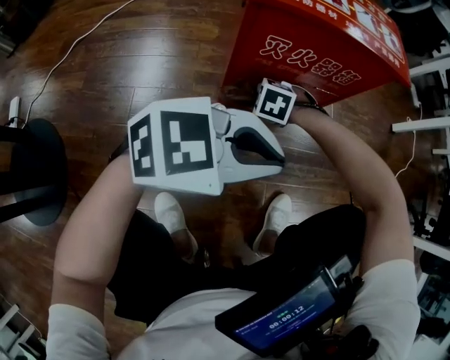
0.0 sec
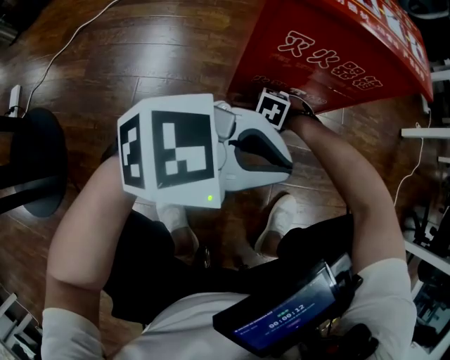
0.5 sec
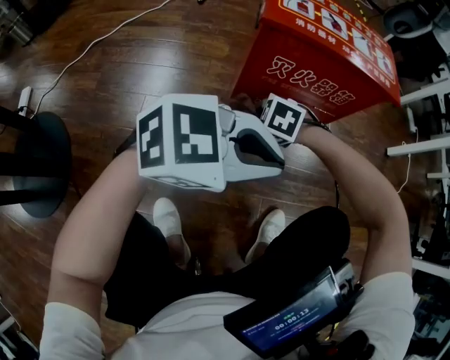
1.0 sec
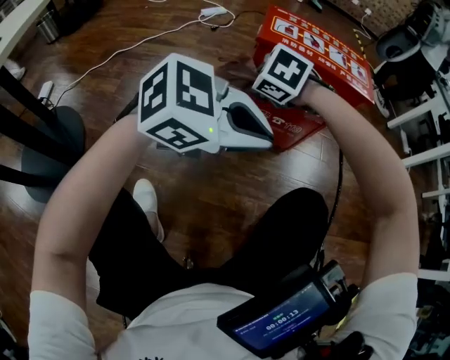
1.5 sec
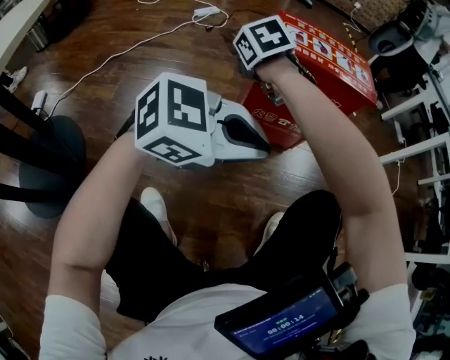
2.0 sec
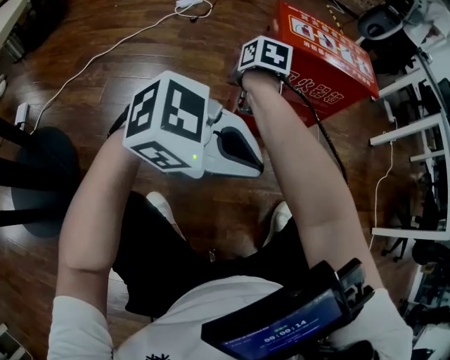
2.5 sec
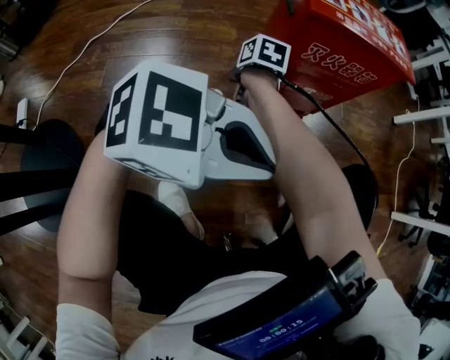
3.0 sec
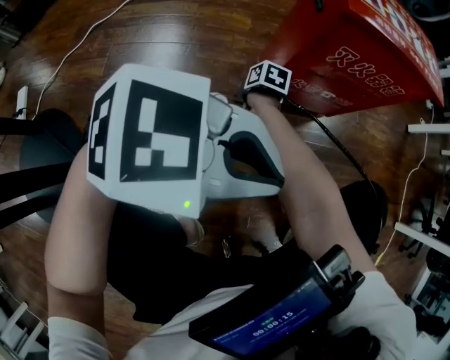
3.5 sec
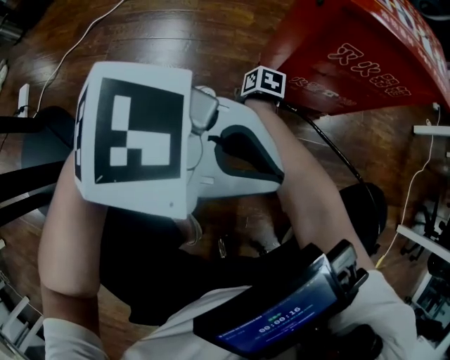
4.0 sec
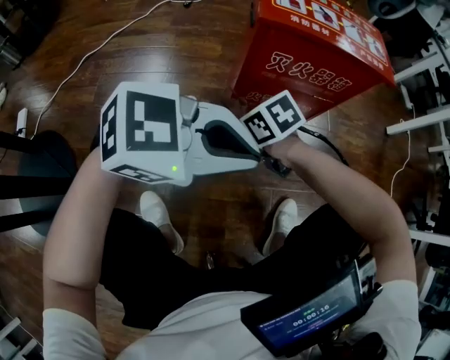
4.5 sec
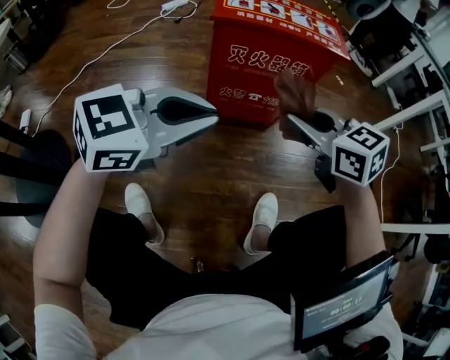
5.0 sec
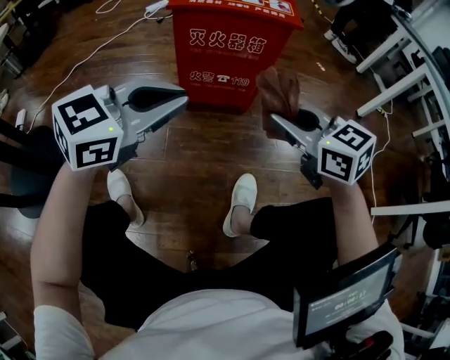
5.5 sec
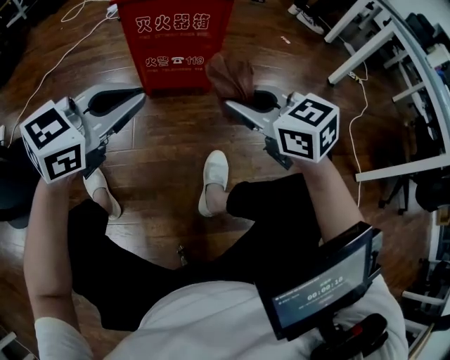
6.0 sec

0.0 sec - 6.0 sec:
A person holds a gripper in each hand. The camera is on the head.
0.0 sec - 2.0 sec: The left gripper changes place by approximately 10 cm; the right gripper moves upward, approximately 25 cm, and changes its angle by roughly 50 degrees.
2.0 sec - 4.0 sec: The right gripper goes roughly 40 cm downward, and rolls clockwise, seen from behind, by about 60 degrees. Meanwhile the left gripper changes place by approximately 10 cm.
4.0 sec - 6.0 sec: The left gripper changes place by about 20 cm, and rotates about 40 degrees. Meanwhile the right gripper shifts by approximately 60 cm, and rolls counterclockwise, seen from behind, by some 60 degrees.

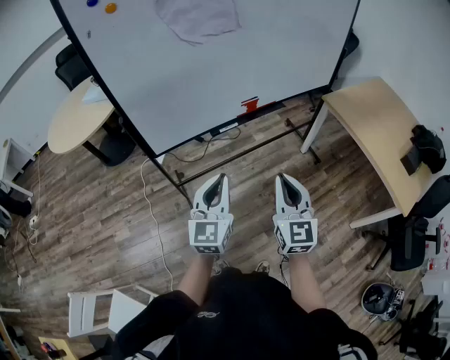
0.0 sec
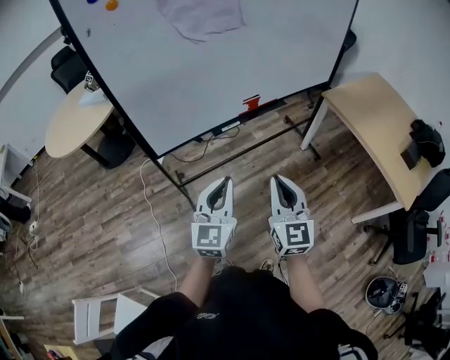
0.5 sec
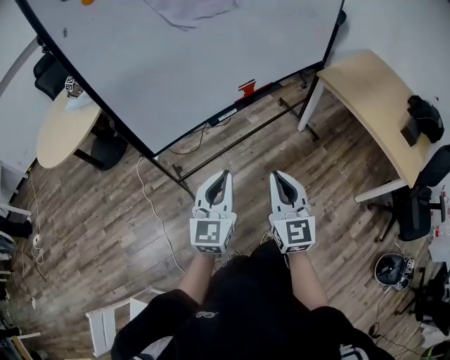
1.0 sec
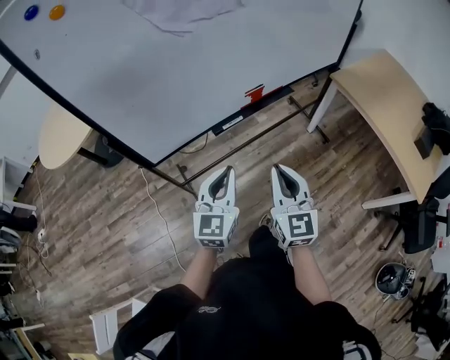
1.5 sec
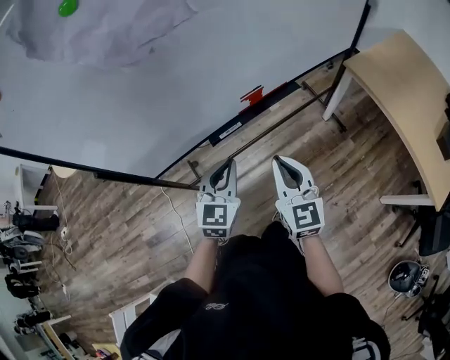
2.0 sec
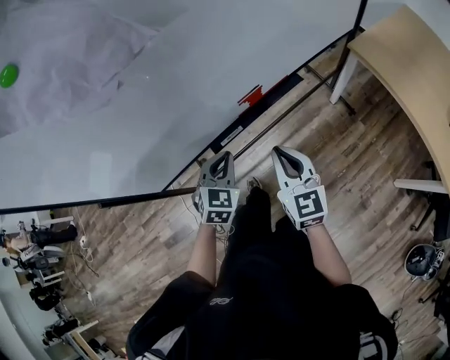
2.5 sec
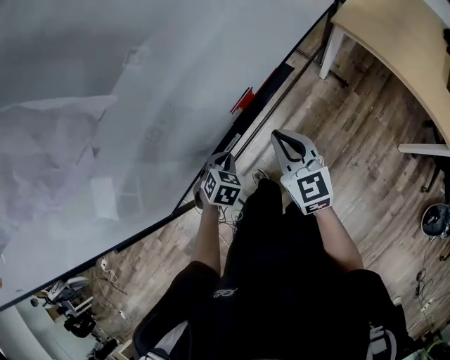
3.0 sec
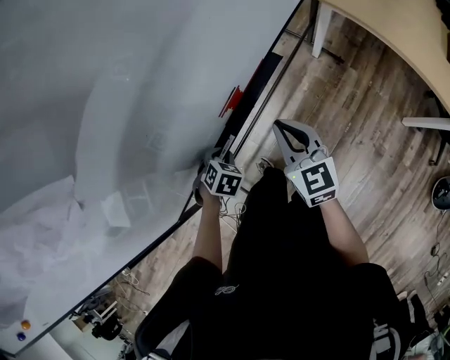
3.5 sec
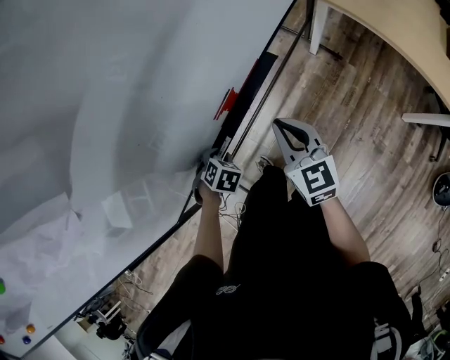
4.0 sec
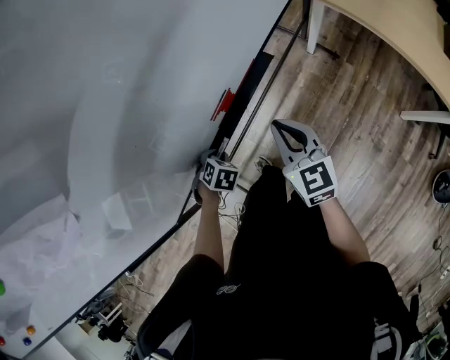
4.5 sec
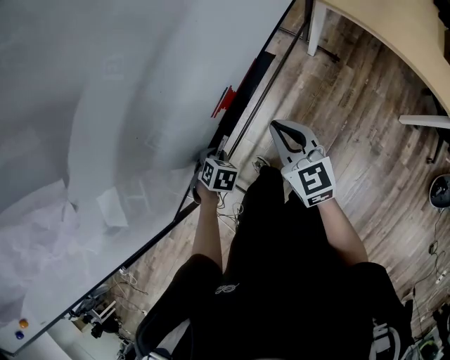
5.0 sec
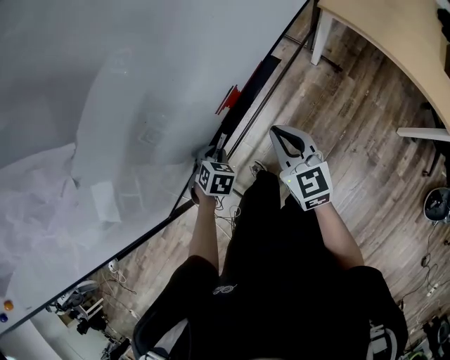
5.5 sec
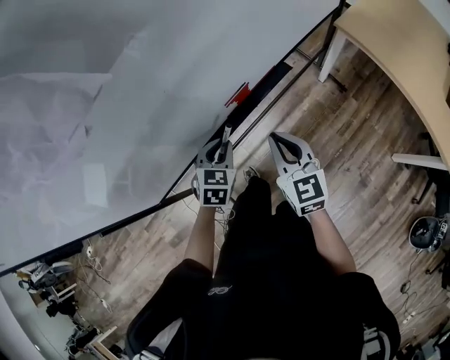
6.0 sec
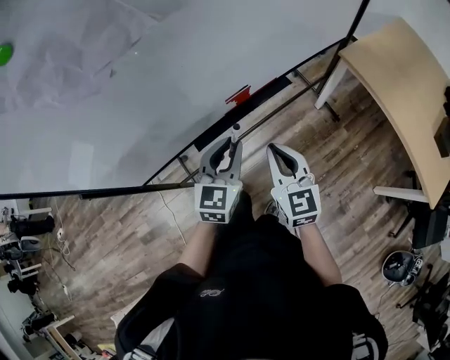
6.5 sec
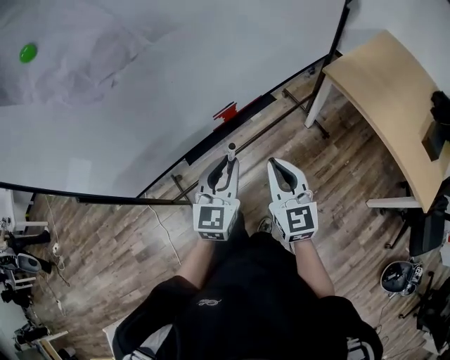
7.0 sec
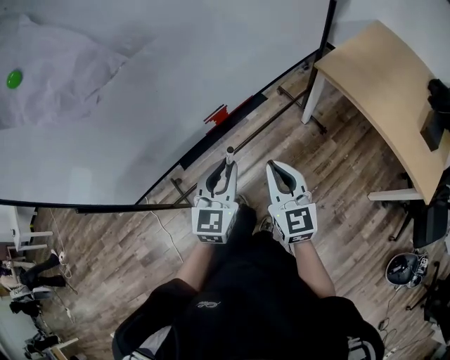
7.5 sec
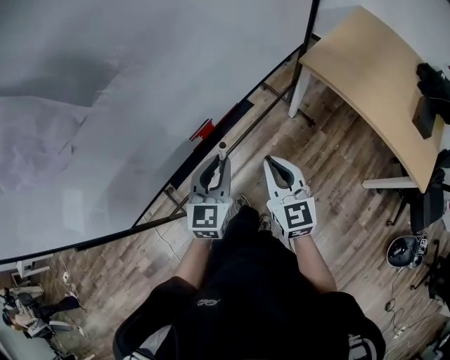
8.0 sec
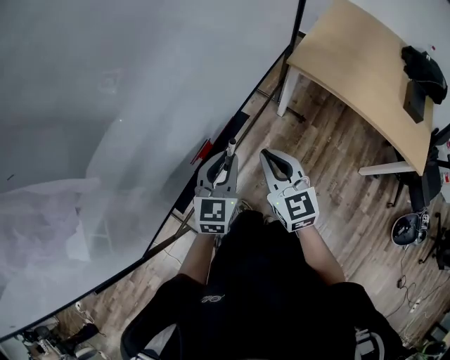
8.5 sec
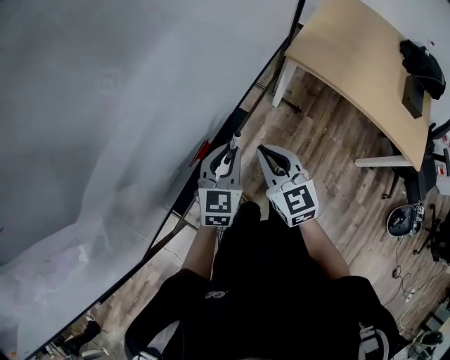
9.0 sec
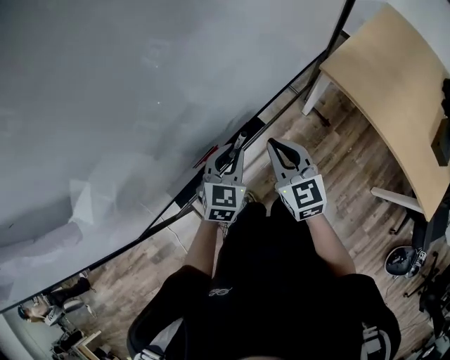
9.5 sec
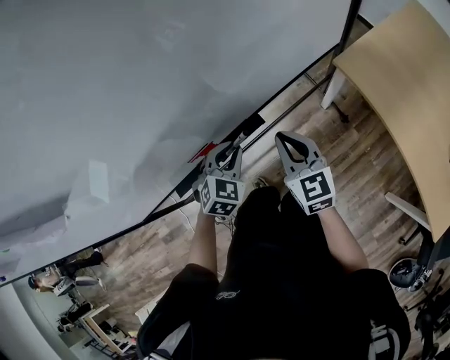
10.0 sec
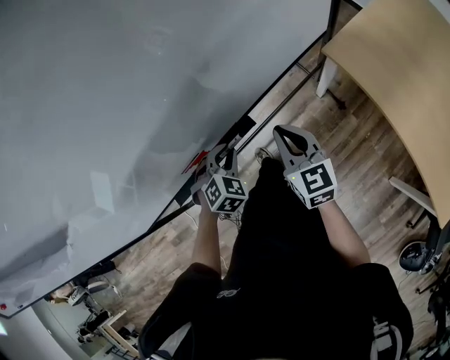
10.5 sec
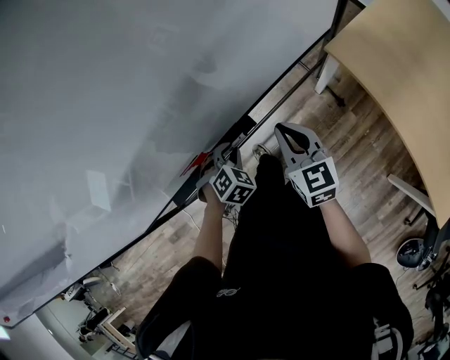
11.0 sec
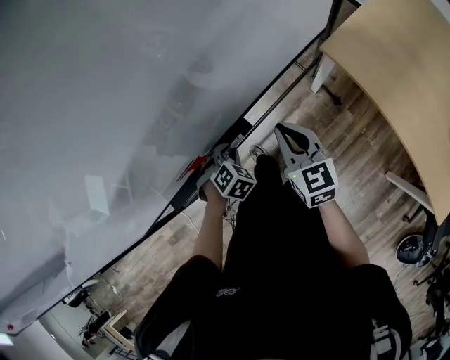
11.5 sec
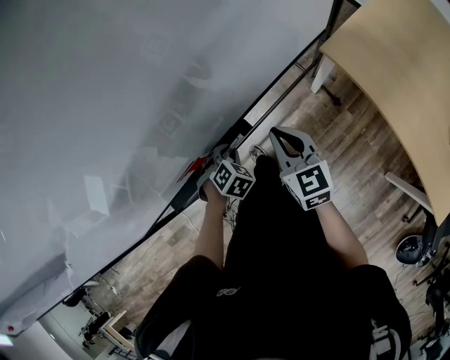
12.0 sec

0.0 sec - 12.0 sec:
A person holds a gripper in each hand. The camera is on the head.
0.0 sec - 2.0 sec: The grippers both shift forward and downward by some 25 cm. The left gripper turns by about 20 degrees.
2.0 sec - 4.0 sec: The left gripper travels downward by roughly 25 cm, points its fingers some 60 degrees further downward, and opens its fingers, while the right gripper ends up about 20 cm from where it was.
4.0 sec - 6.0 sec: The right gripper moves some 5 cm. The left gripper shifts about 10 cm upward, and tips its fingers upward by about 30 degrees.
6.0 sec - 8.0 sec: The right gripper heads to the right, covering about 10 cm. The left gripper is displaced to the right and upward by about 20 cm, and swivels about 30 degrees.
8.0 sec - 10.0 sec: The right gripper goes approximately 20 cm forward; the left gripper travels forward and downward by approximately 20 cm, and tips its fingers downward by some 30 degrees.
10.0 sec - 12.0 sec: The right gripper shifts by approximately 5 cm. The left gripper is displaced downward by roughly 15 cm, and swivels about 30 degrees.

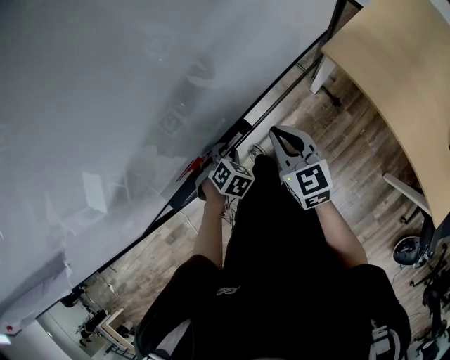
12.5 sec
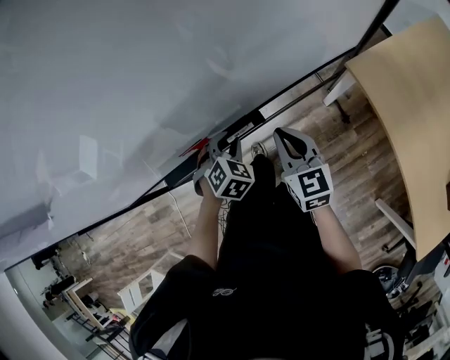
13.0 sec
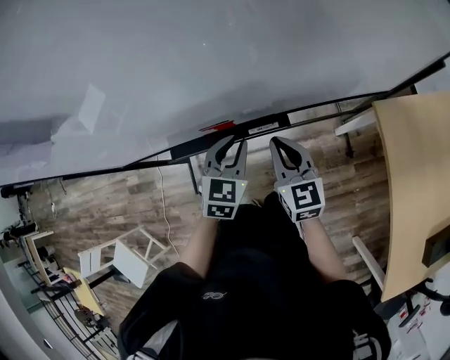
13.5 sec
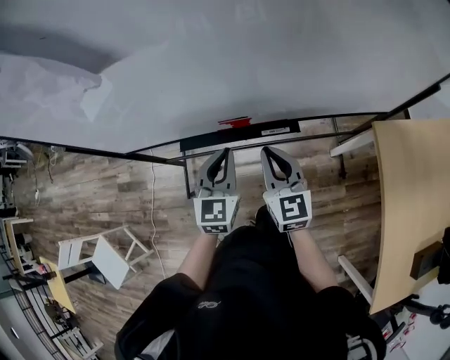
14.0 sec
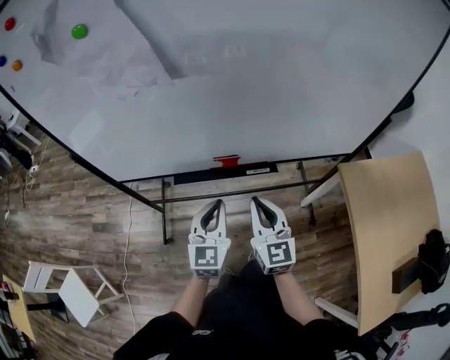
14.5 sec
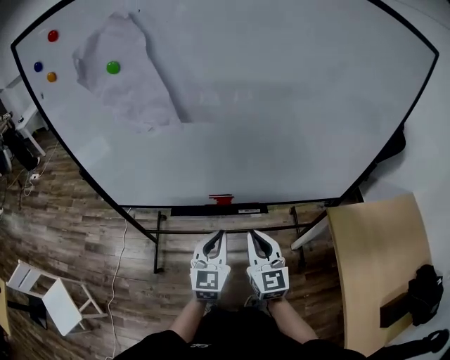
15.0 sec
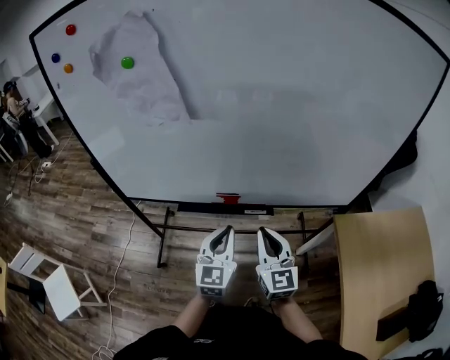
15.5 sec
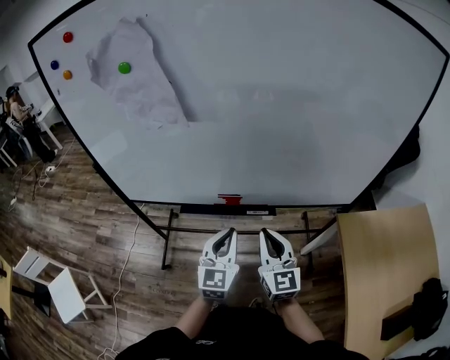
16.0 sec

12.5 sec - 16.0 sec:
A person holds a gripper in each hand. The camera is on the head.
12.5 sec - 14.5 sec: The left gripper heads upward, backward and to the left, covering approximately 35 cm, and angles its fingers upward, by roughly 60 degrees; the right gripper goes approximately 30 cm to the left, backward and upward, and swivels approximately 30 degrees.
14.5 sec - 16.0 sec: The two grippers go roughly 5 cm to the right.

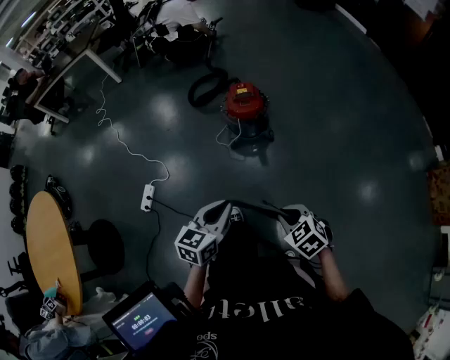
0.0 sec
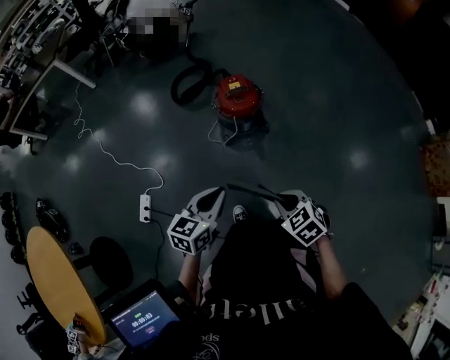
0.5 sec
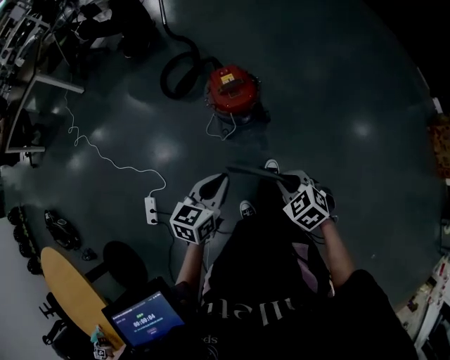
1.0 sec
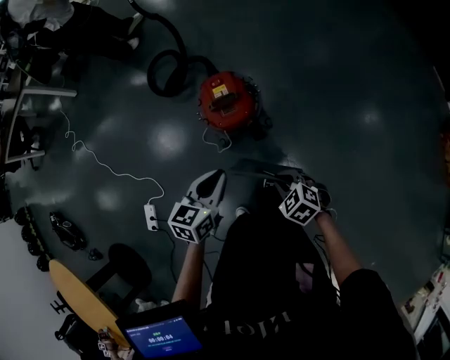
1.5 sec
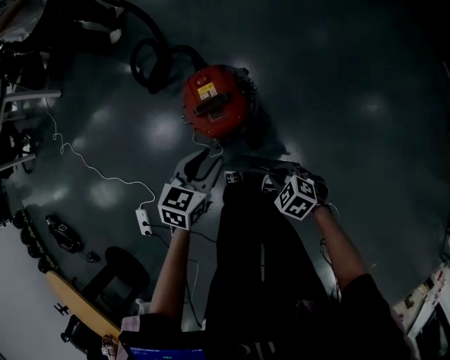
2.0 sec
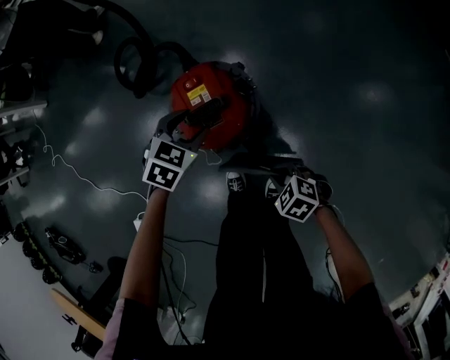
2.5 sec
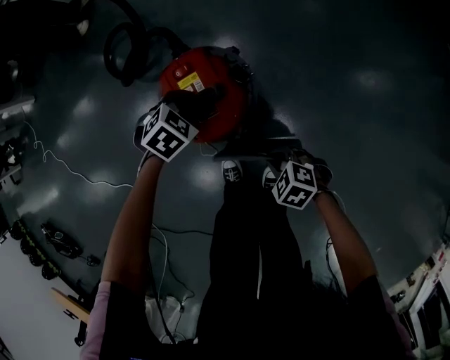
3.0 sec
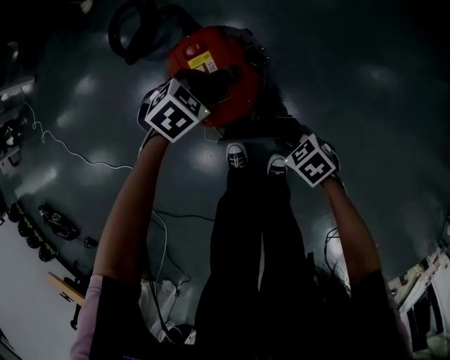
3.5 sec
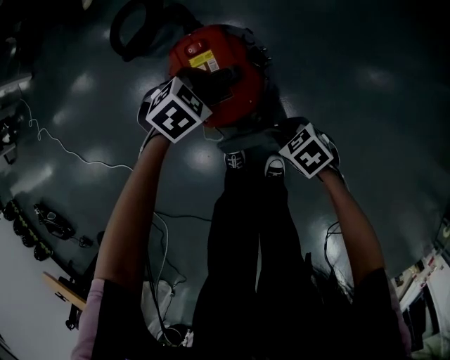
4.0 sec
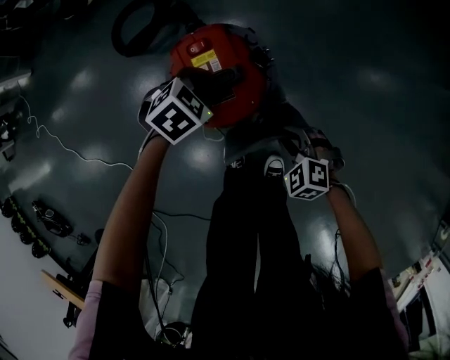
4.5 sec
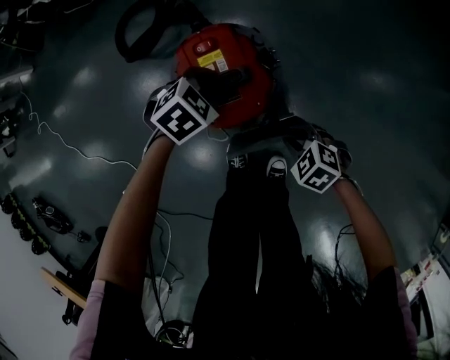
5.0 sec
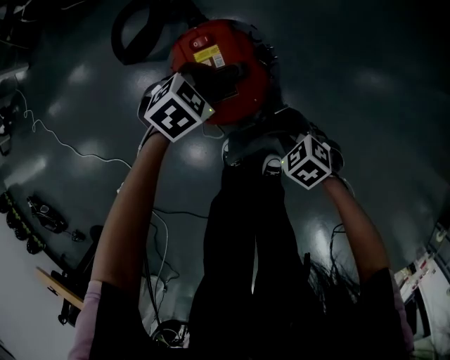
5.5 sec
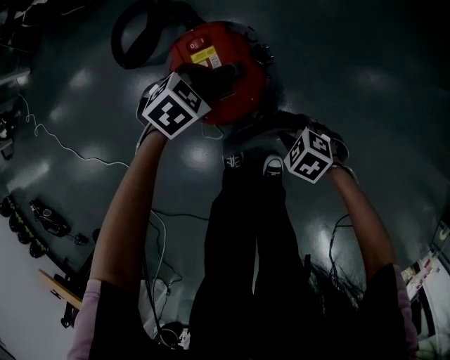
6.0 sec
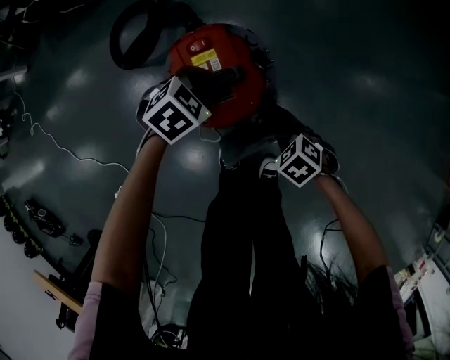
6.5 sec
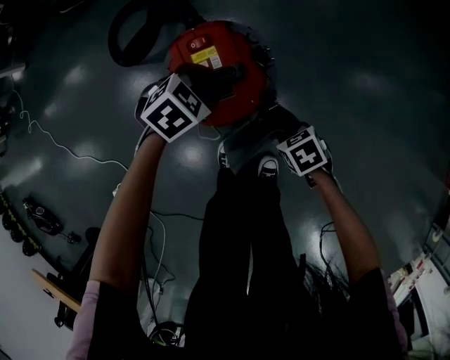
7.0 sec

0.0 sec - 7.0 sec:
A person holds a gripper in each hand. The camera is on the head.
0.0 sec - 2.0 sec: Both grippers are carried forward, some 50 cm. The grippers both shift downward by some 30 cm. The left gripper swivels some 20 degrees, and opens.
2.0 sec - 3.5 sec: Both grippers move downward, about 15 cm. The left gripper rotates approximately 50 degrees, and opens, then closes once more.
3.5 sec - 5.0 sec: The right gripper turns by some 20 degrees.
5.0 sec - 7.0 sec: The right gripper turns by approximately 30 degrees.
